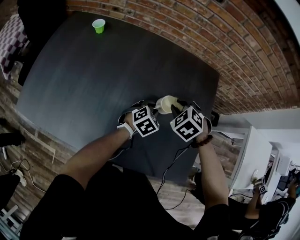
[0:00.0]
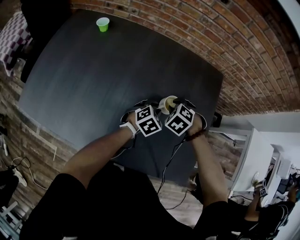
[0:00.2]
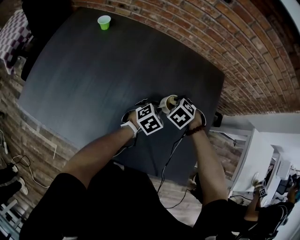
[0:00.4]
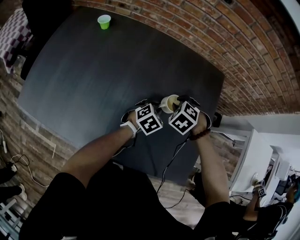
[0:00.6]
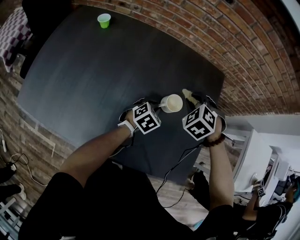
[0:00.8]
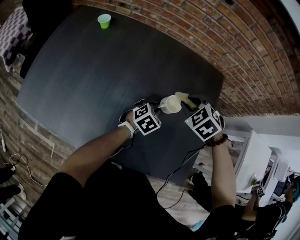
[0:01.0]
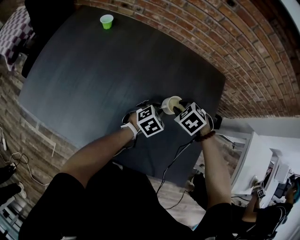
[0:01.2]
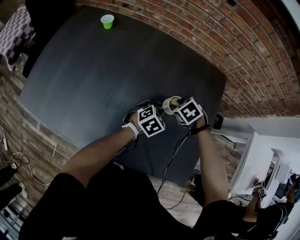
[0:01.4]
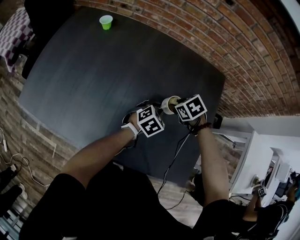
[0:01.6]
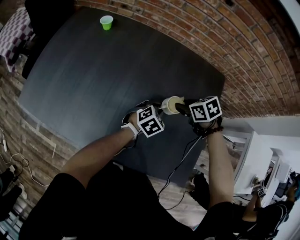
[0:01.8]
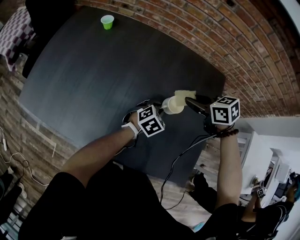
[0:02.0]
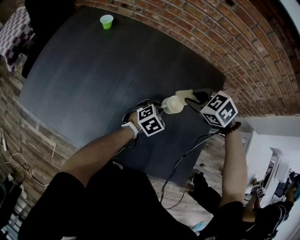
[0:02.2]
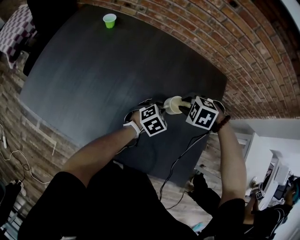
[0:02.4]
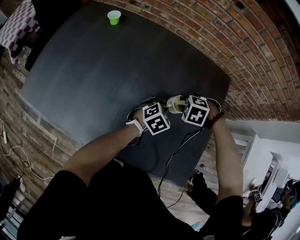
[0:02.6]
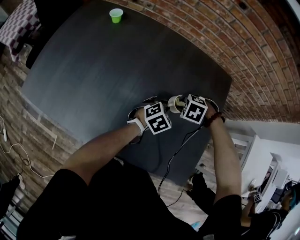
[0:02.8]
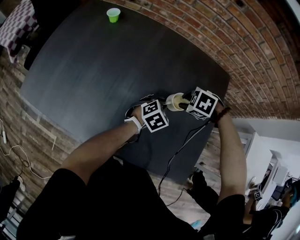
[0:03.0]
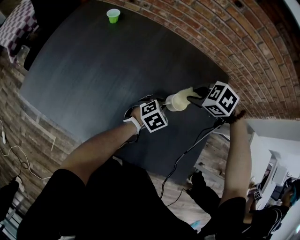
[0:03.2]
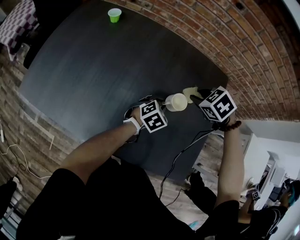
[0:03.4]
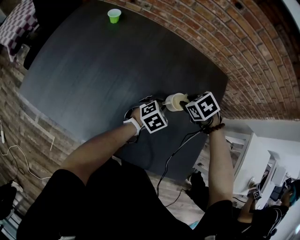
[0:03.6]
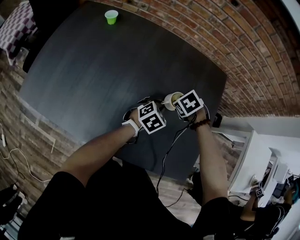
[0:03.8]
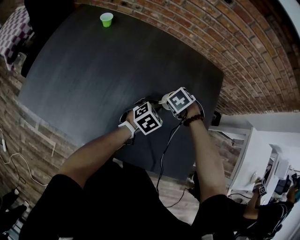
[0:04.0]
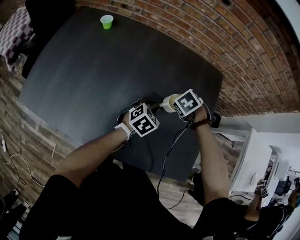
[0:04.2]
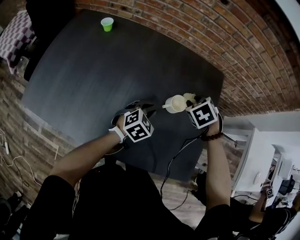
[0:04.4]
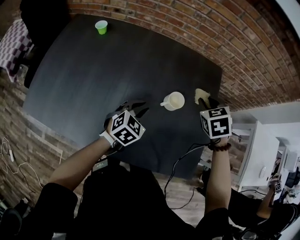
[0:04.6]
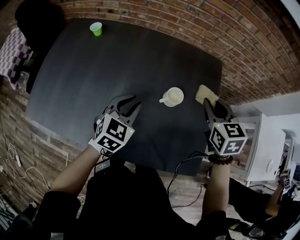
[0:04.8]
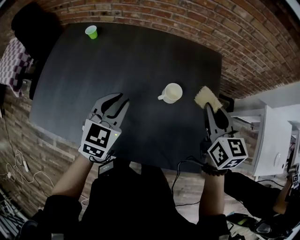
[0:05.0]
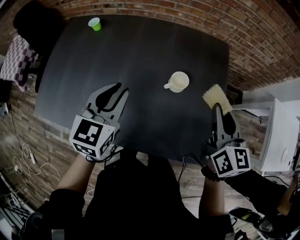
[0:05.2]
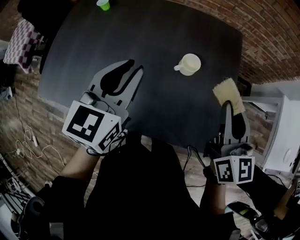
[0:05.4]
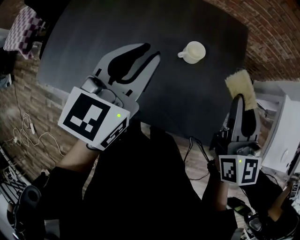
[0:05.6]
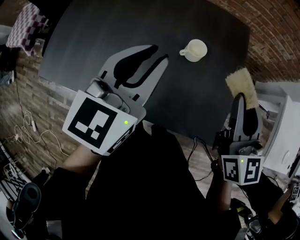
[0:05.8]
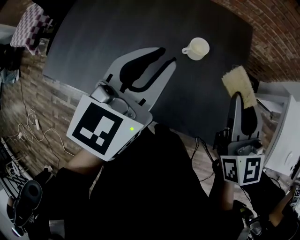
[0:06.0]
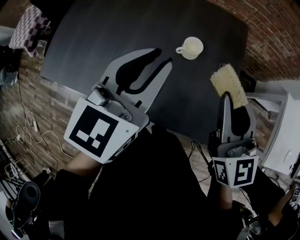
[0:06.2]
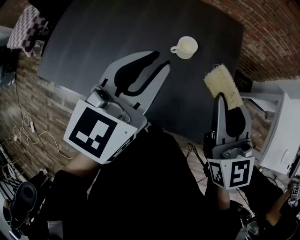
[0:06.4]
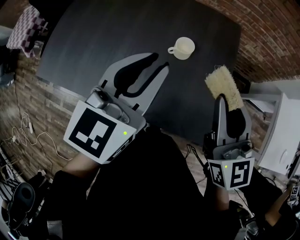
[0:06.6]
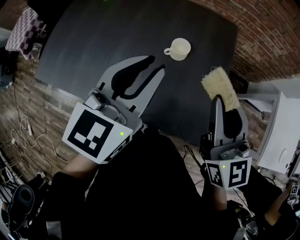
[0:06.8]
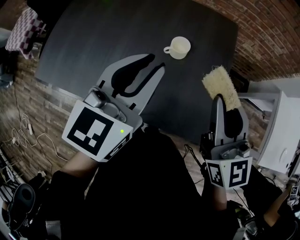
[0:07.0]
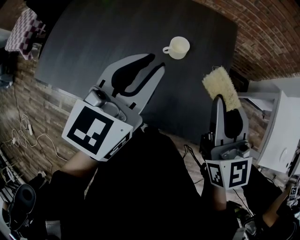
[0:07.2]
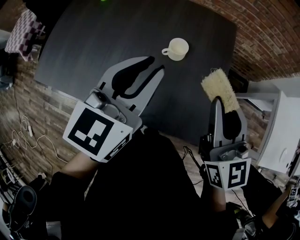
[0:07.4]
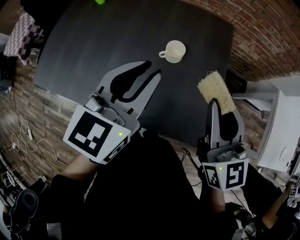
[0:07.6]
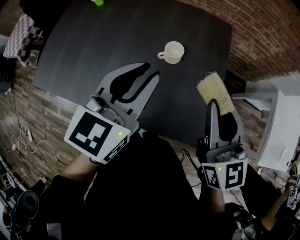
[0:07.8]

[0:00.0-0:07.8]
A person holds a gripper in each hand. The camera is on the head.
0.0 to 1.6 s: The right gripper moves up and down over approximately 10 cm, changing direction 2 times, and rotates roughly 30 degrees.
1.6 to 3.2 s: The right gripper goes up and down, approximately 15 cm each way, reversing 2 times, and rotates about 30 degrees.
3.2 to 4.6 s: The right gripper travels downward and back again, about 10 cm each way, and swivels about 50 degrees. Meanwhile the left gripper changes place by about 10 cm.
4.6 to 6.2 s: The right gripper moves backward and upward, approximately 25 cm, and tilts its fingers roughly 50 degrees upward, while the left gripper is displaced upward and backward by about 25 cm, and turns by approximately 30 degrees.
6.2 to 7.8 s: The grippers move only a little.

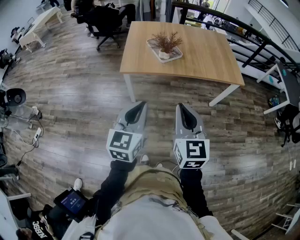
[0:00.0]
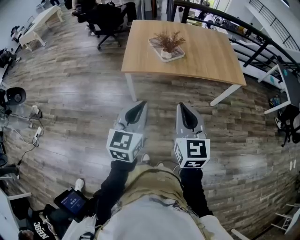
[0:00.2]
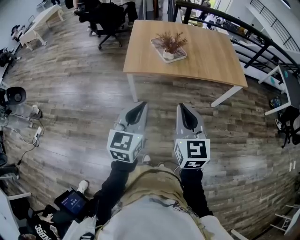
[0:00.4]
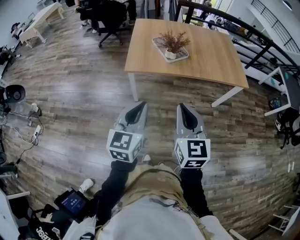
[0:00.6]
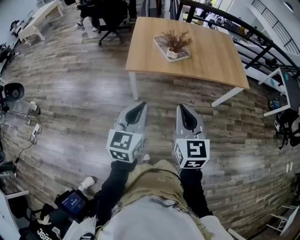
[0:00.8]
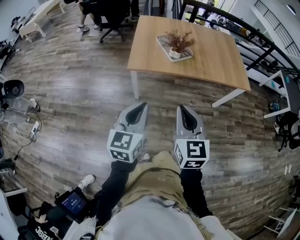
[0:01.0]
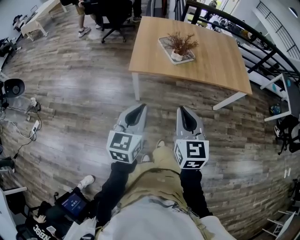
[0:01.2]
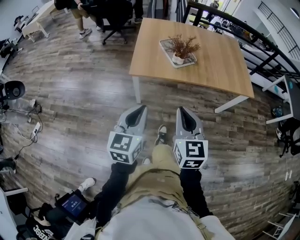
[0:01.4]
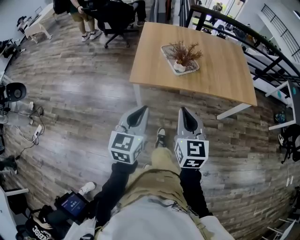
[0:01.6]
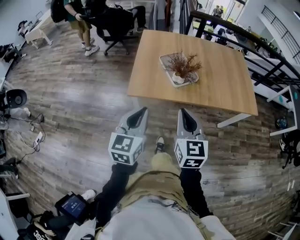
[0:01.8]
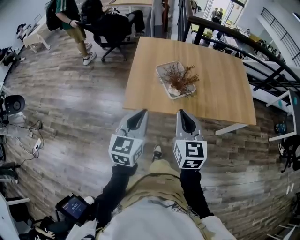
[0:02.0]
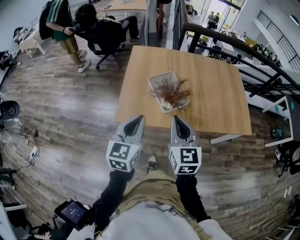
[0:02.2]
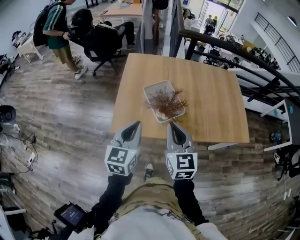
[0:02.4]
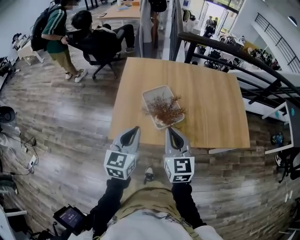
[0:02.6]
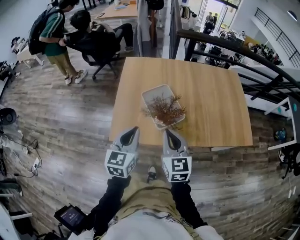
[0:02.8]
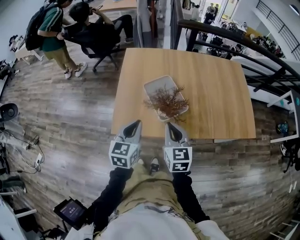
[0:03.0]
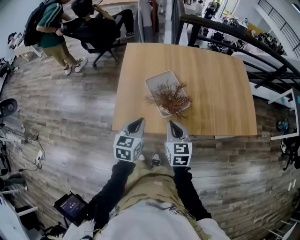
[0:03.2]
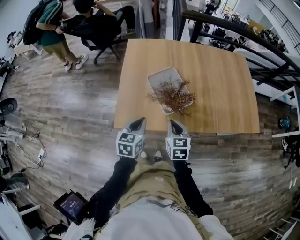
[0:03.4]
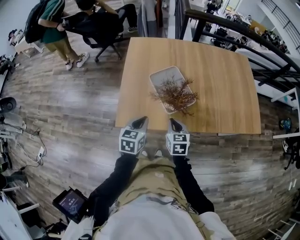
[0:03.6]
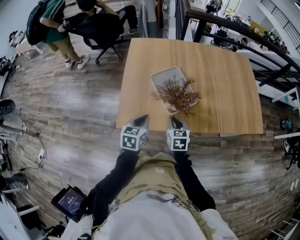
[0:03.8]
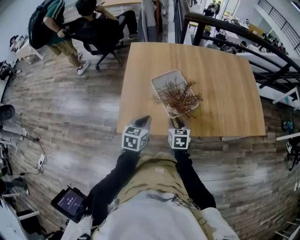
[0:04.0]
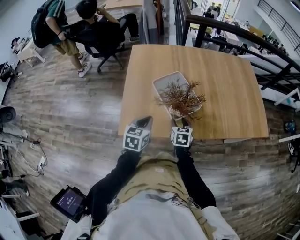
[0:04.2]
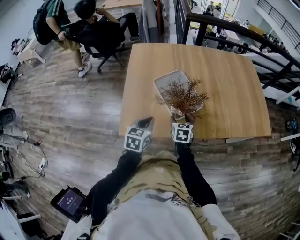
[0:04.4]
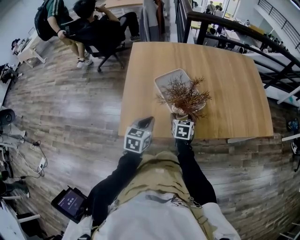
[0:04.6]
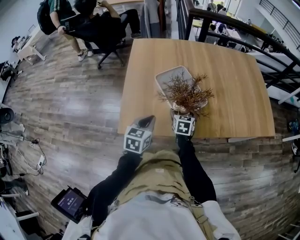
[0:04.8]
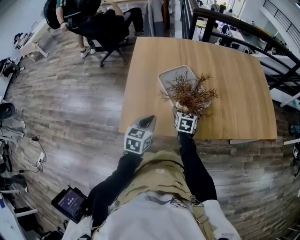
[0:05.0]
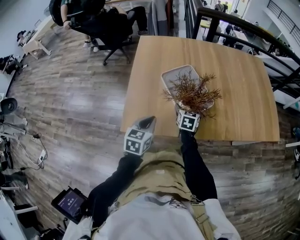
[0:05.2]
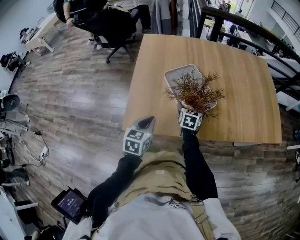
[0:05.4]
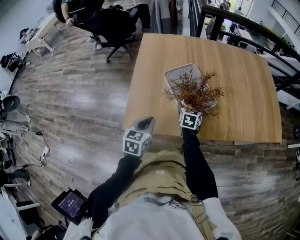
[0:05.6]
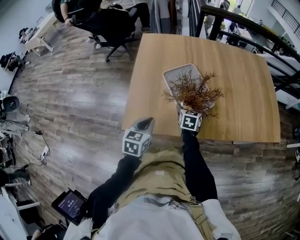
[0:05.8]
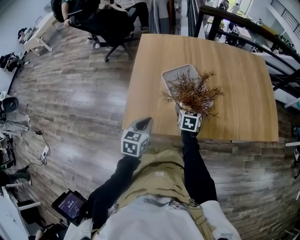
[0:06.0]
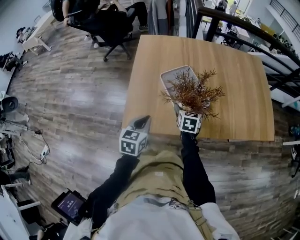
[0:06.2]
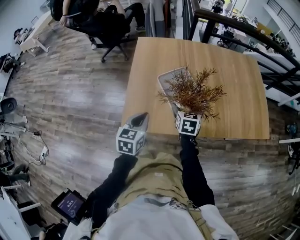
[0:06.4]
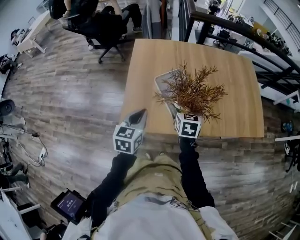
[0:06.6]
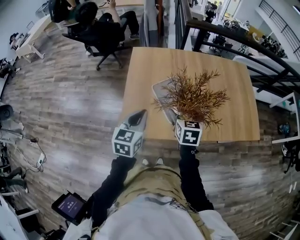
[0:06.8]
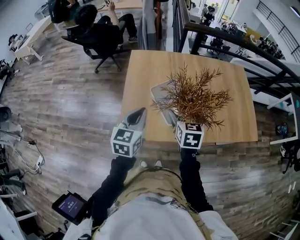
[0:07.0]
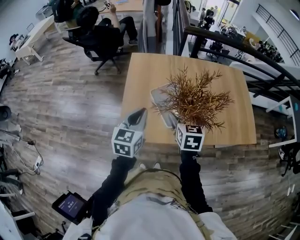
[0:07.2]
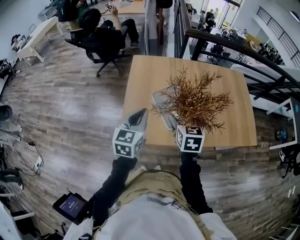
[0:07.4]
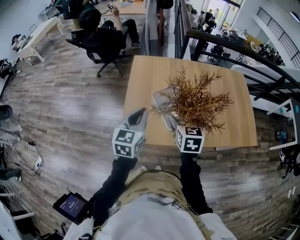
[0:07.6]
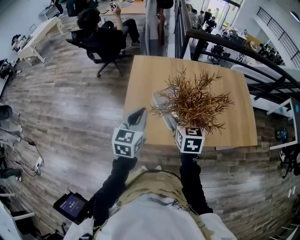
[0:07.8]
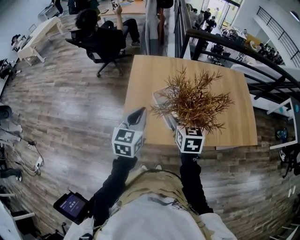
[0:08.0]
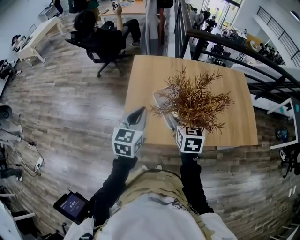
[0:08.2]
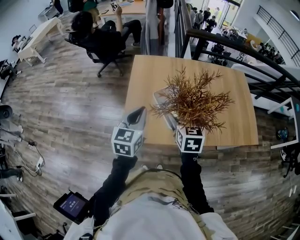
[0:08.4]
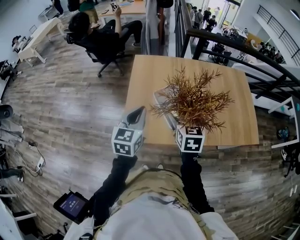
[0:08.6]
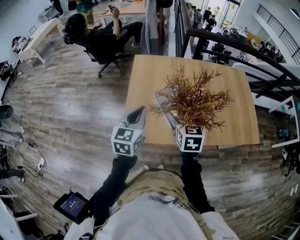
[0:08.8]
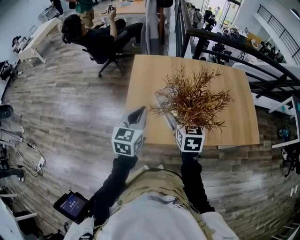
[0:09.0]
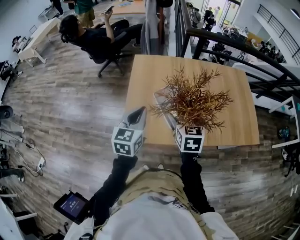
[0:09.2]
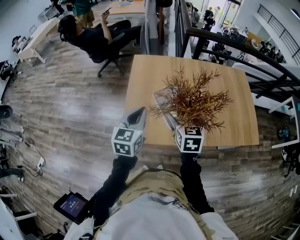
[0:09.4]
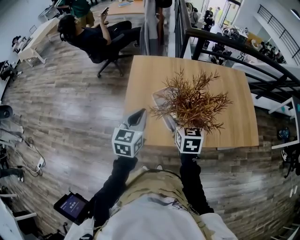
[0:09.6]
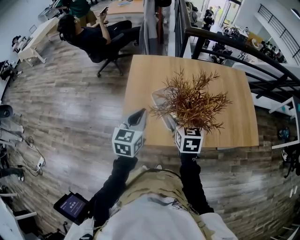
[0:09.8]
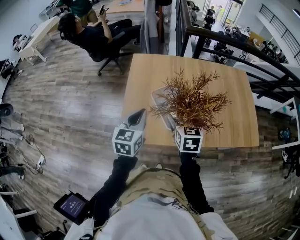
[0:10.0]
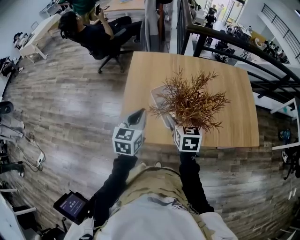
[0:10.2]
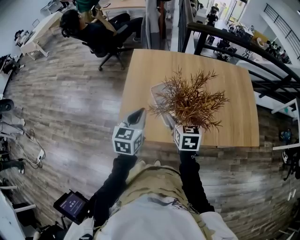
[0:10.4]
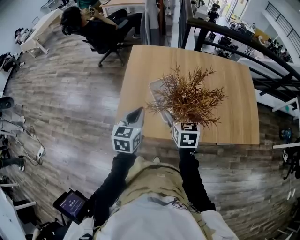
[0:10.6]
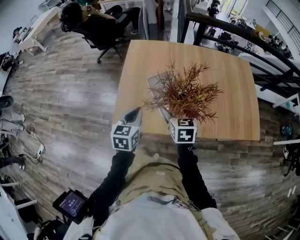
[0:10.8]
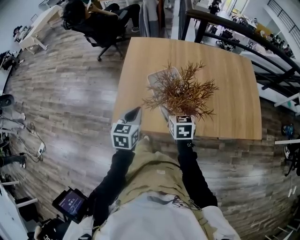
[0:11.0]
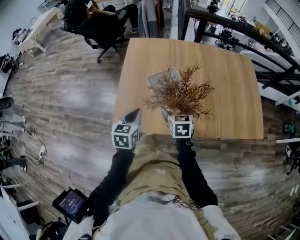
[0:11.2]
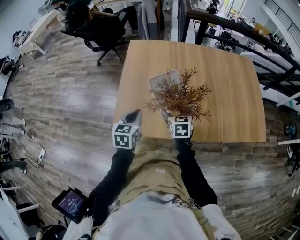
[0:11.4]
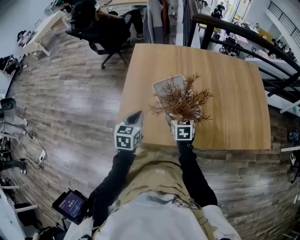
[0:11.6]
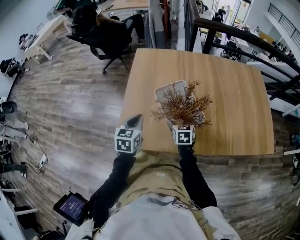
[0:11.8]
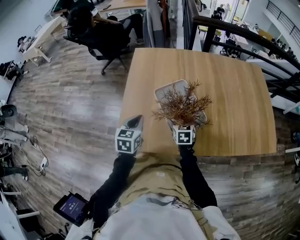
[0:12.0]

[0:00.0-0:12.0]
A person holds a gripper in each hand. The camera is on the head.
0.0 to 1.6 s: The two grippers go roughly 15 cm forward and to the left.
1.6 to 3.0 s: The two grippers go some 35 cm forward.
3.0 to 4.4 s: The right gripper travels downward by about 25 cm, changes its angle by some 20 degrees, and opens its fingers; the left gripper is displaced downward by some 15 cm.
4.4 to 6.0 s: The right gripper shifts some 5 cm forward.
6.0 to 7.6 s: The grippers both shift upward by approximately 25 cm.
7.6 to 9.0 s: Neither gripper changes place.
9.0 to 10.4 s: The left gripper moves some 5 cm. Meanwhile the right gripper changes place by roughly 5 cm.
10.4 to 12.0 s: The two grippers go roughly 25 cm downward.

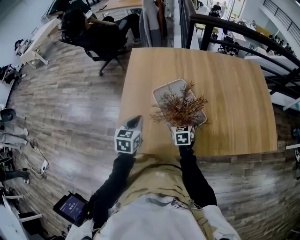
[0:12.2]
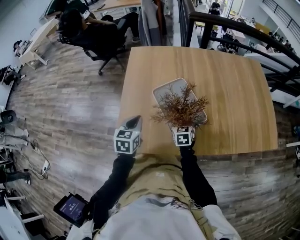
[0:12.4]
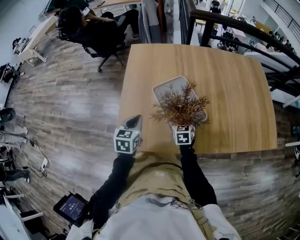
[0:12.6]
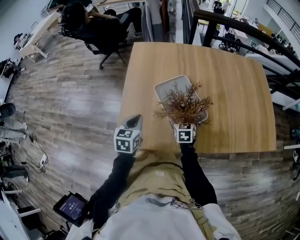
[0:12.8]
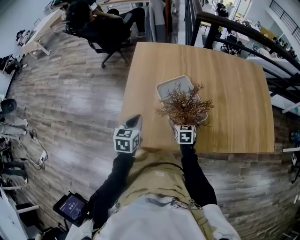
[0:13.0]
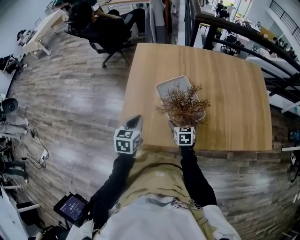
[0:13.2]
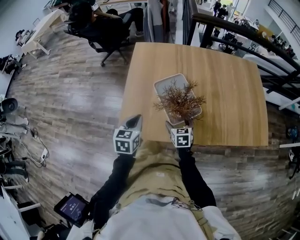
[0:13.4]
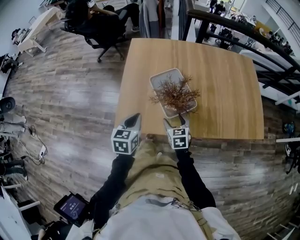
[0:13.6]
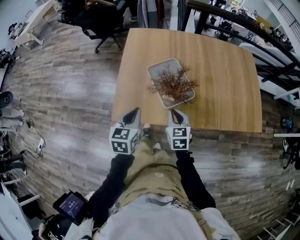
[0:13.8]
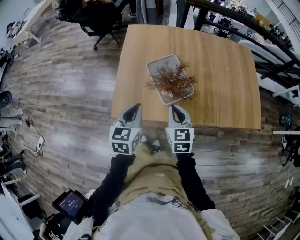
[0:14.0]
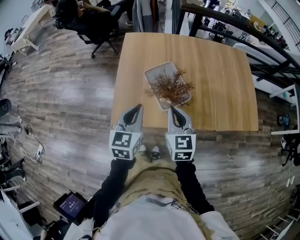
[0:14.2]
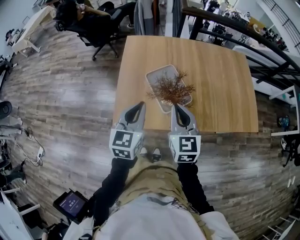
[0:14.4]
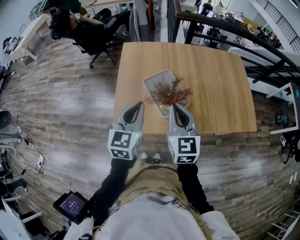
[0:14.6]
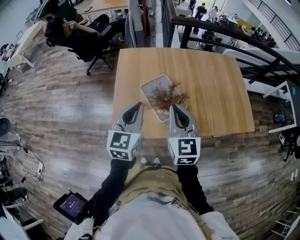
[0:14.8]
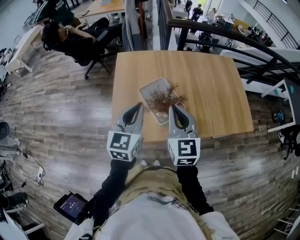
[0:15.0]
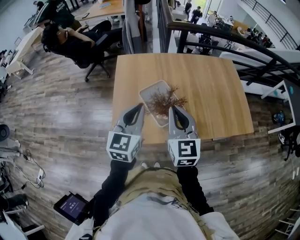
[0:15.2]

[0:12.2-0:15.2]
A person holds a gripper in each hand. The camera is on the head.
12.2 to 13.8 s: The two grippers go roughly 20 cm upward and backward. The right gripper closes its fingers.
13.8 to 15.2 s: Both grippers move upward, approximately 20 cm. The right gripper changes its angle by about 30 degrees. Meanwhile the left gripper changes its angle by some 30 degrees.

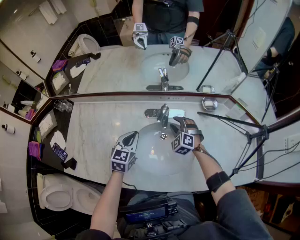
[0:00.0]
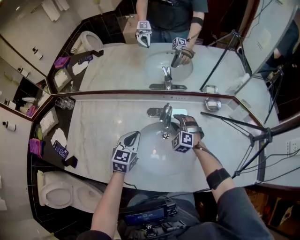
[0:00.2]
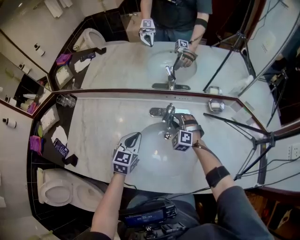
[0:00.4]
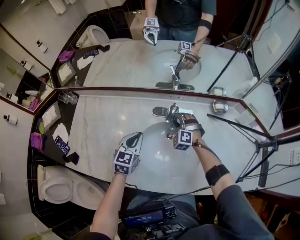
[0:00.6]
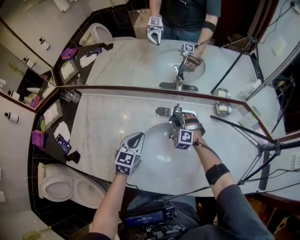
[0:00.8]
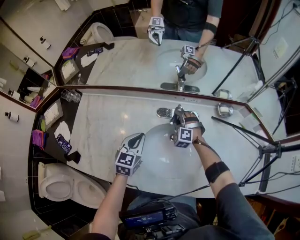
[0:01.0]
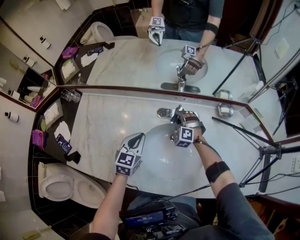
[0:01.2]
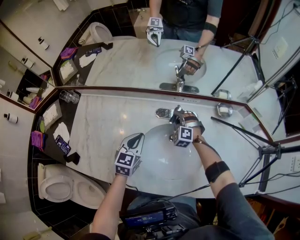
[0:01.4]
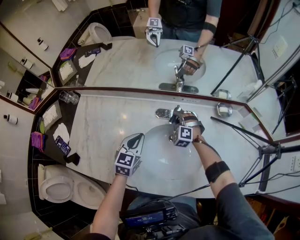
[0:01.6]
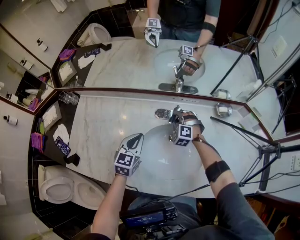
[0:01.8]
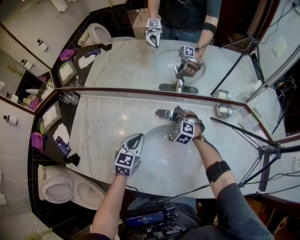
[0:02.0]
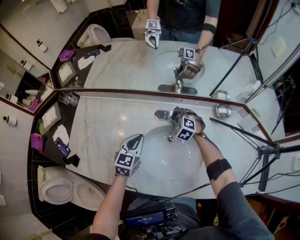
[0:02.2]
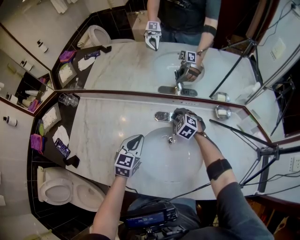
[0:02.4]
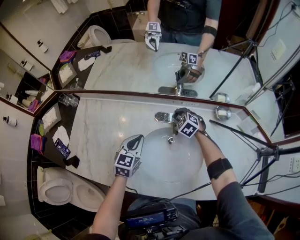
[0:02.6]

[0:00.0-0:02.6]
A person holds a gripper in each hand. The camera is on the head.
0.0 to 1.2 s: The right gripper goes roughly 10 cm forward and to the left.
1.2 to 2.6 s: The right gripper rotates roughly 30 degrees.
